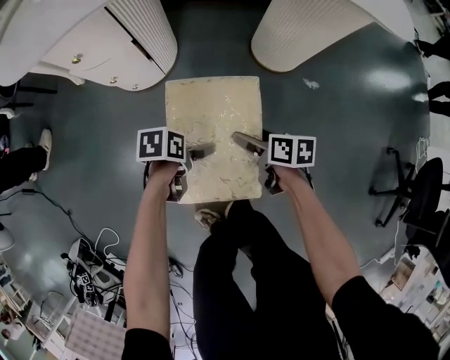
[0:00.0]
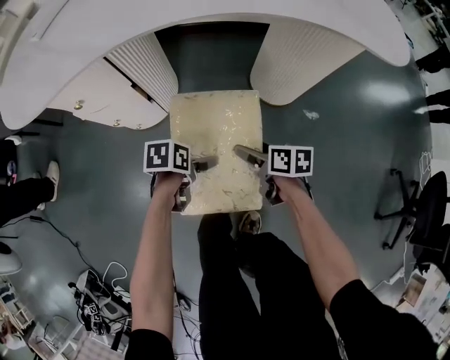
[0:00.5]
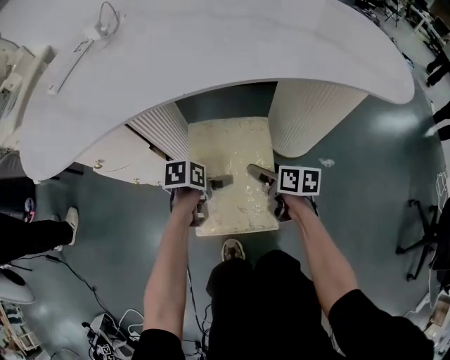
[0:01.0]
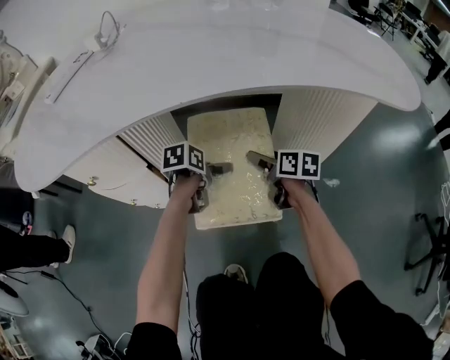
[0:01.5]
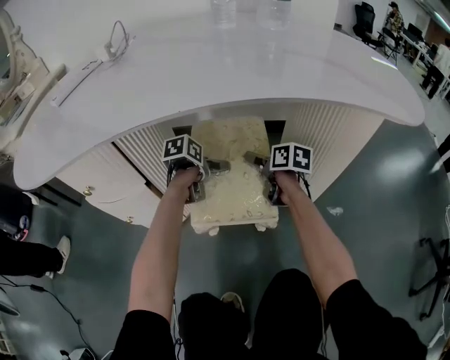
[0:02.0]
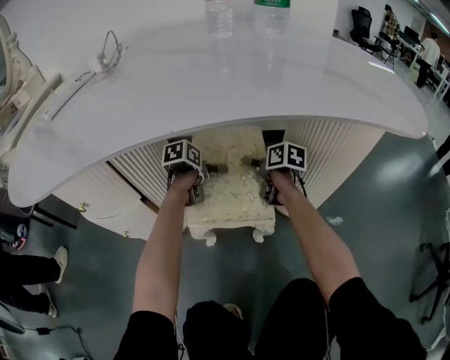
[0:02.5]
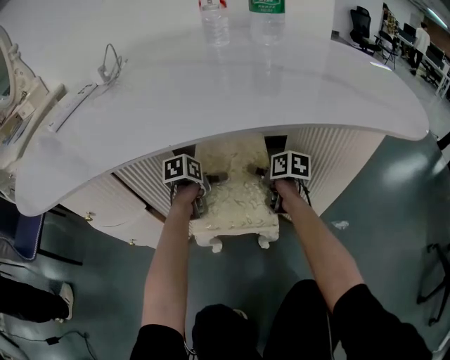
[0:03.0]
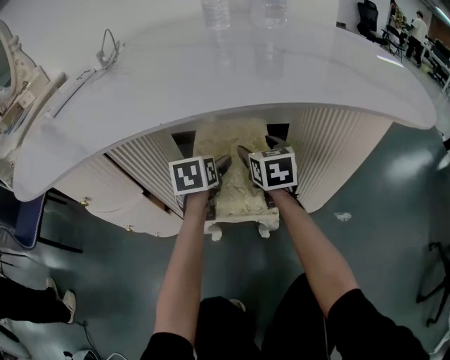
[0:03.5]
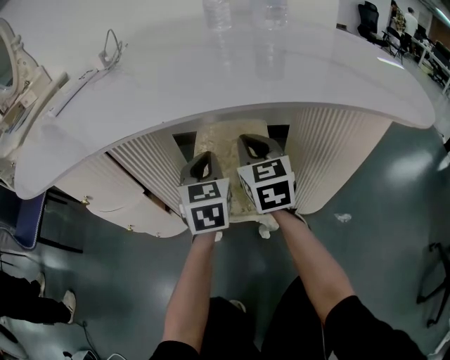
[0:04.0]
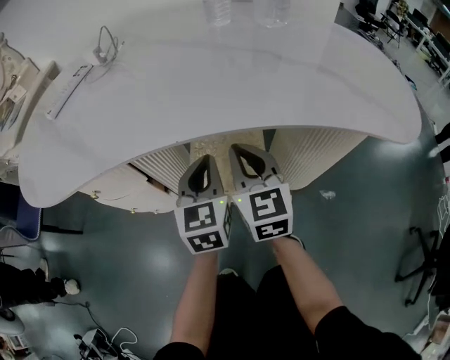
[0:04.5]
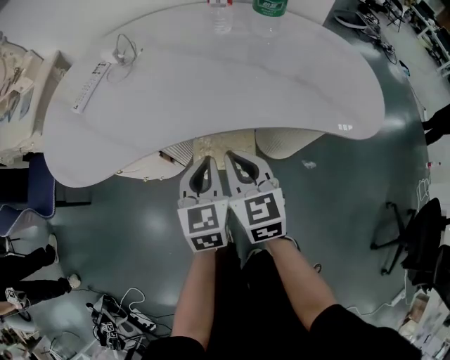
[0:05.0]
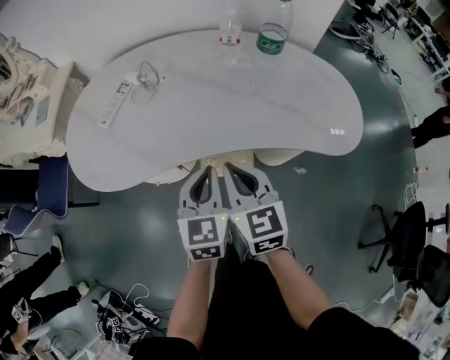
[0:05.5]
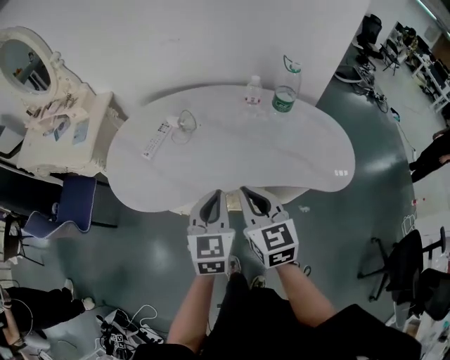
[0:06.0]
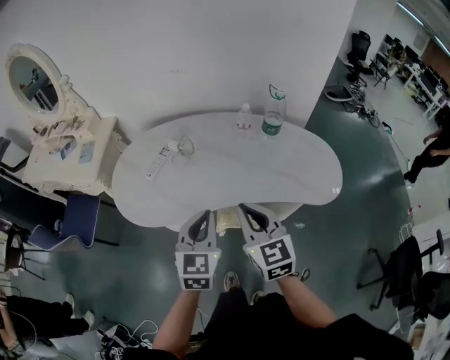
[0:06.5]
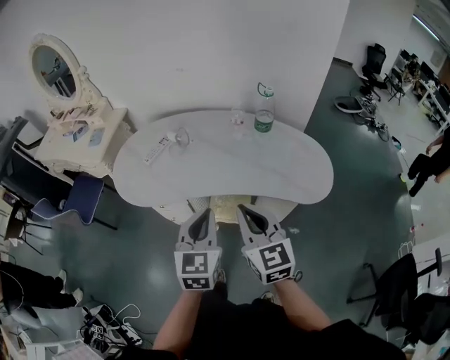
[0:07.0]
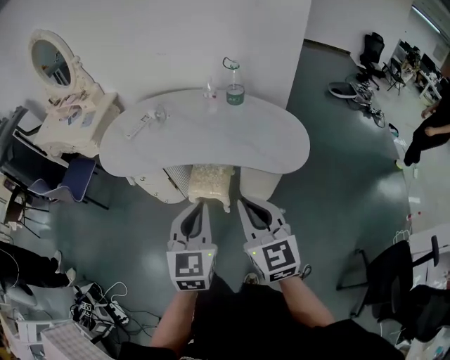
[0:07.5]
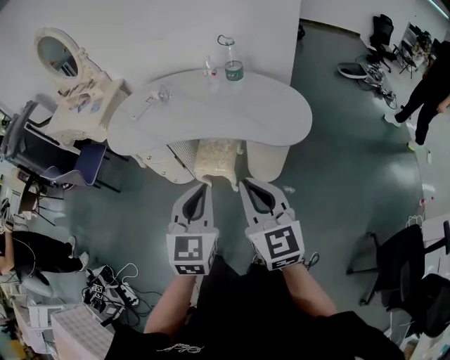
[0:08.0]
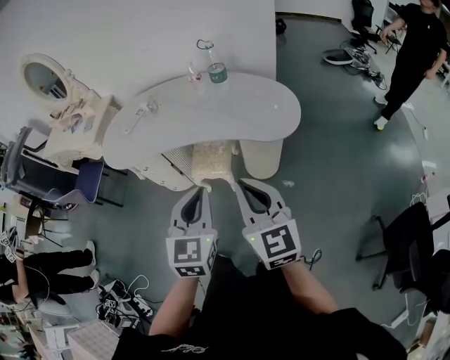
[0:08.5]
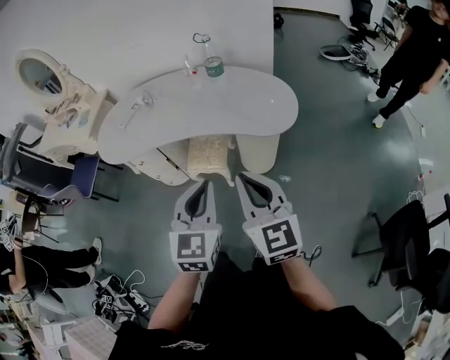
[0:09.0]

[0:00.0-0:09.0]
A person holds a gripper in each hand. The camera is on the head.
0:00.0 to 0:02.0: The two grippers travel together, some 40 cm. The right gripper rotates about 20 degrees.
0:02.0 to 0:04.5: The left gripper goes approximately 20 cm upward, points its fingers approximately 40 degrees further upward, and closes its fingers; the right gripper travels upward and backward by some 25 cm, rotates around the line of its fingers by approximately 40 degrees, counterclockwise from behind, and closes its fingers.
0:04.5 to 0:07.0: The grippers both shift upward and backward by some 50 cm.
0:07.0 to 0:09.0: Both grippers travel together backward and to the right, approximately 25 cm.

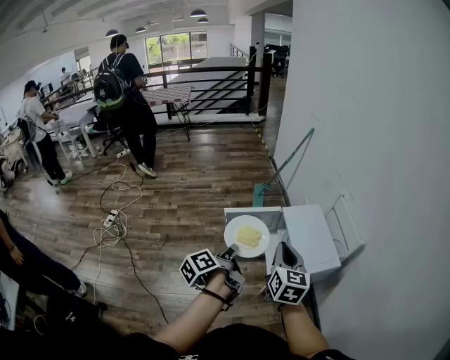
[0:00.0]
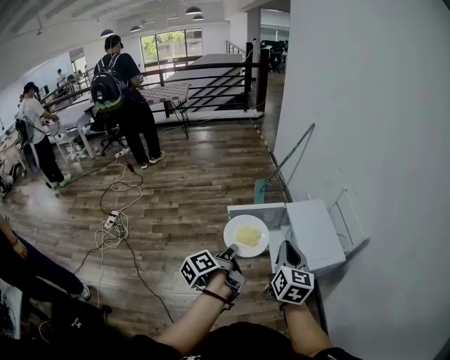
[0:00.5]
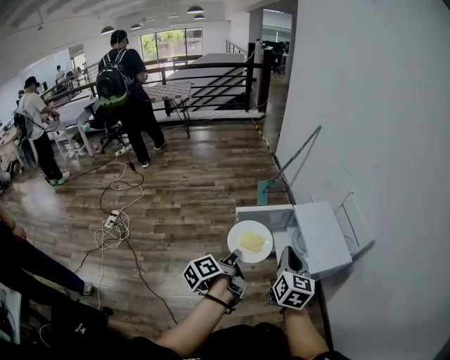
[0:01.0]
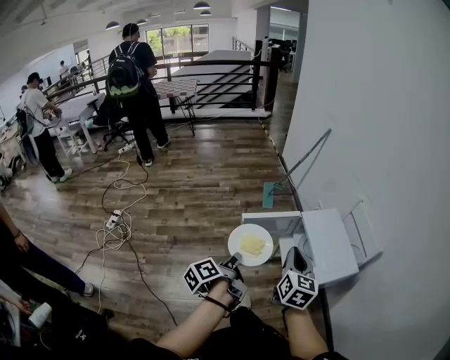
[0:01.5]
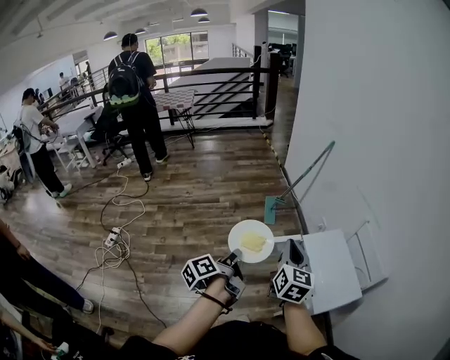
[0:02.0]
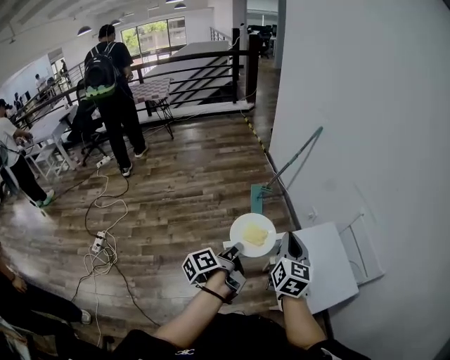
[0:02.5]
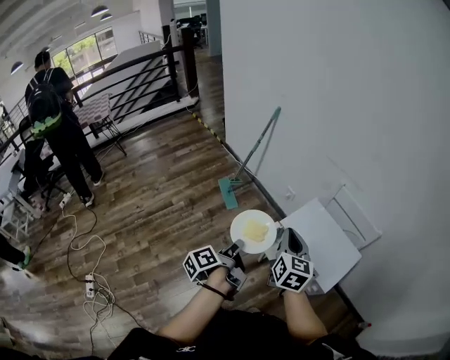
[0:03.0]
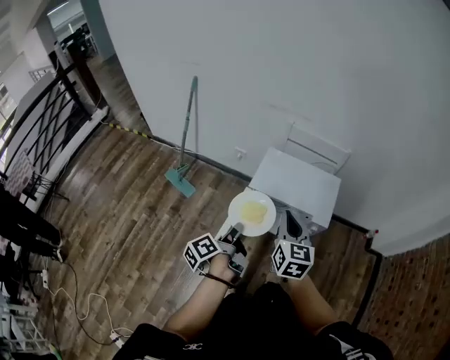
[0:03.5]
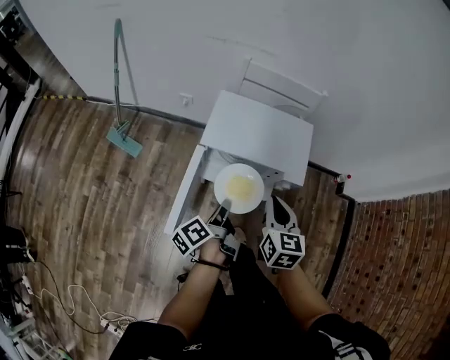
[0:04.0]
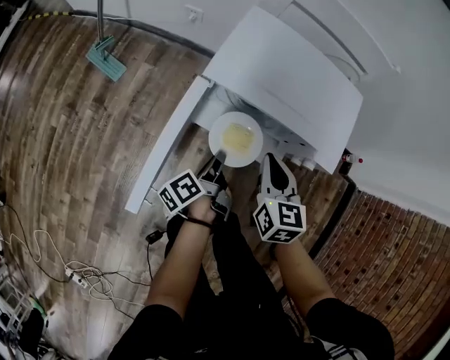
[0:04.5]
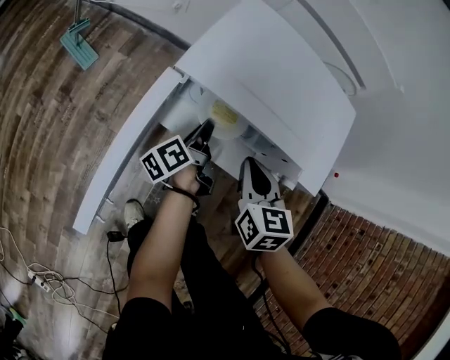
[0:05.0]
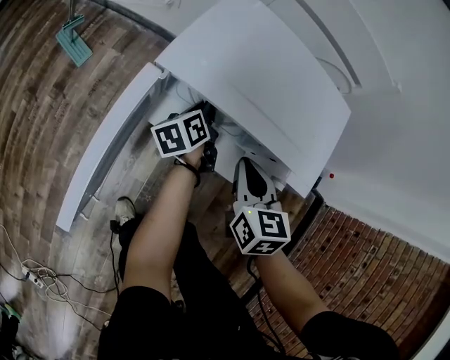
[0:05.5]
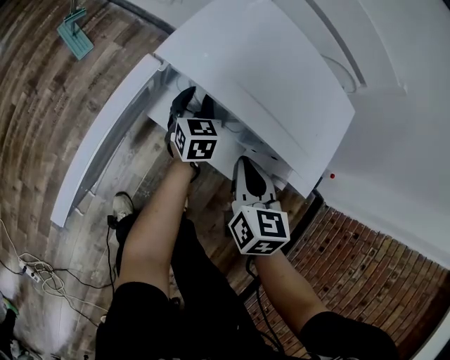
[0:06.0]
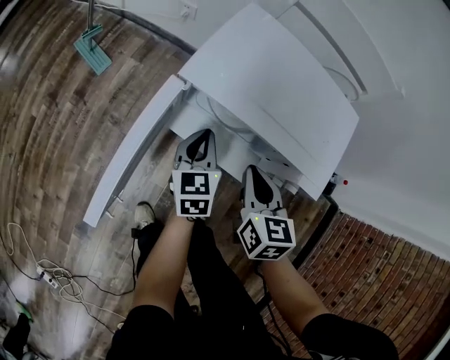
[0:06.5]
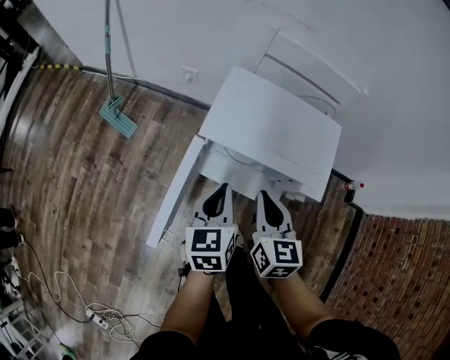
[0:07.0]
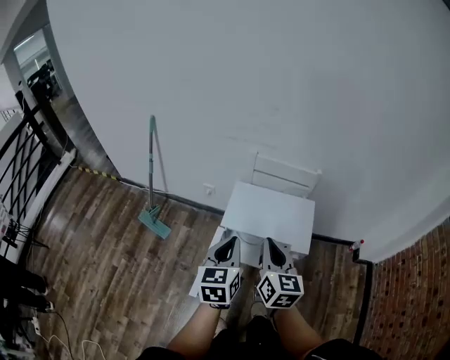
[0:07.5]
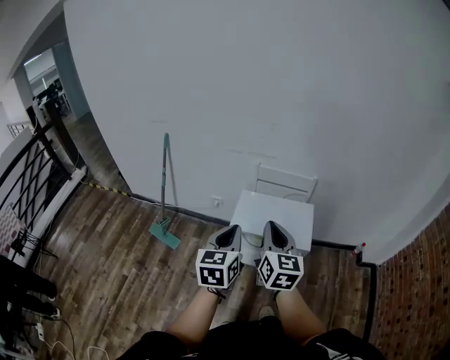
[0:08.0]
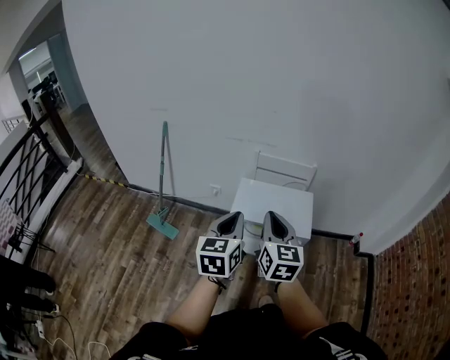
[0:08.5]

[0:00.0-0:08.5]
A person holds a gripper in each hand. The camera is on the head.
0:00.0 to 0:02.0: Both grippers travel together forward and to the left, roughly 20 cm.
0:02.0 to 0:04.0: Both grippers travel together downward, approximately 20 cm. The left gripper rotates some 60 degrees; the right gripper changes its angle by about 60 degrees.
0:04.0 to 0:06.5: The left gripper is displaced downward and forward by about 25 cm, rolls clockwise, seen from behind, by about 60 degrees, and opens and closes again. Meanwhile the right gripper shifts about 20 cm downward.
0:06.5 to 0:08.5: Both grippers travel together upward, about 50 cm. The right gripper changes its angle by about 30 degrees, while the left gripper turns by some 30 degrees.

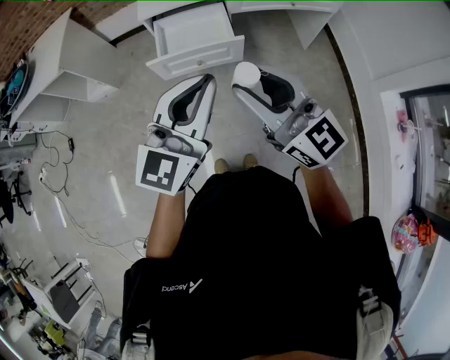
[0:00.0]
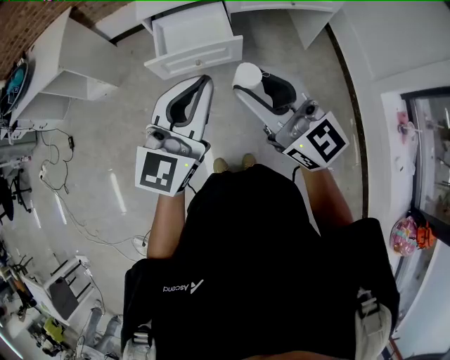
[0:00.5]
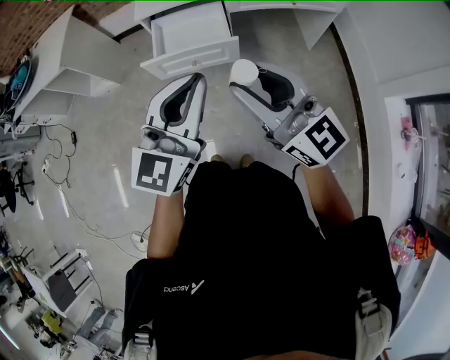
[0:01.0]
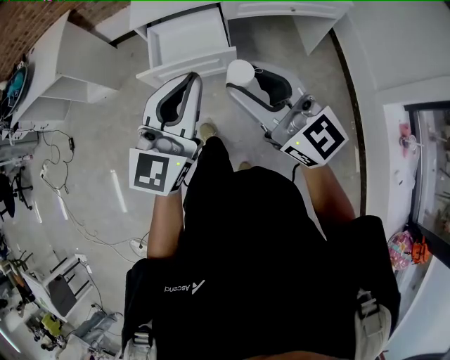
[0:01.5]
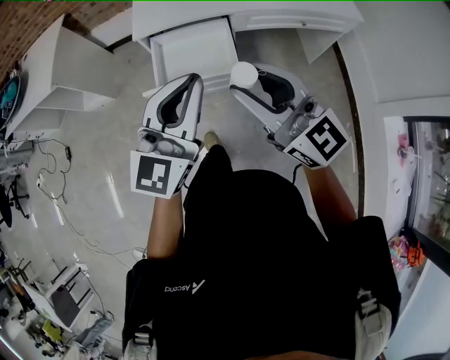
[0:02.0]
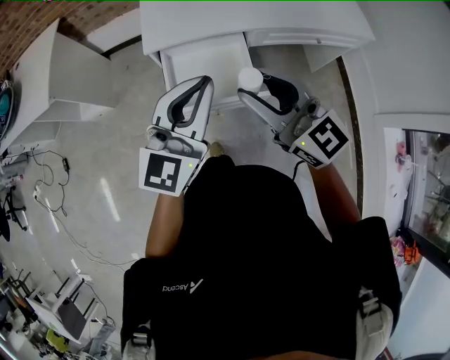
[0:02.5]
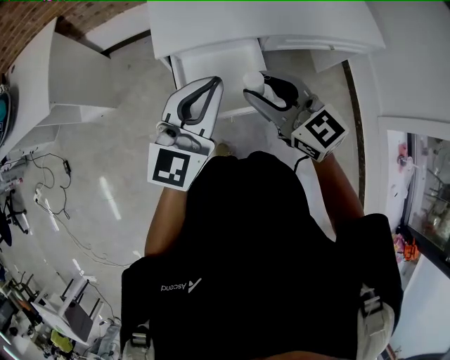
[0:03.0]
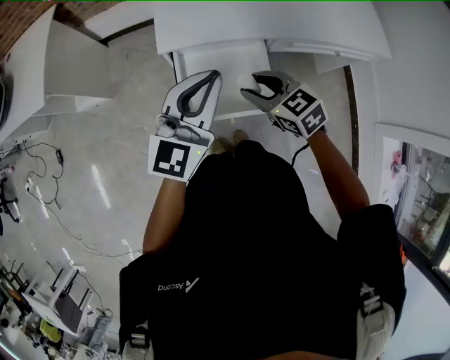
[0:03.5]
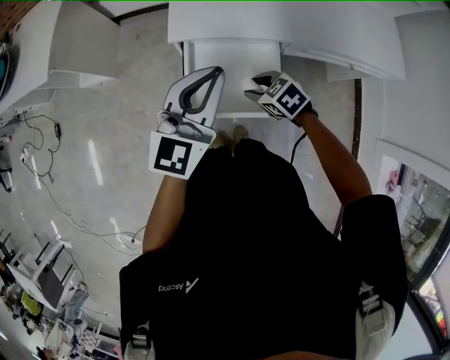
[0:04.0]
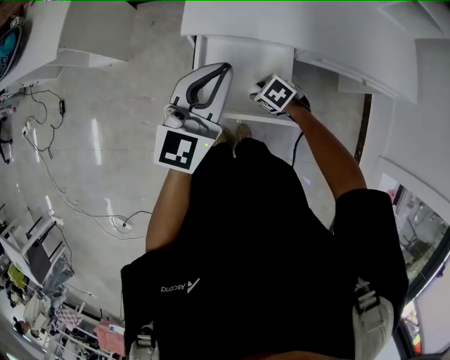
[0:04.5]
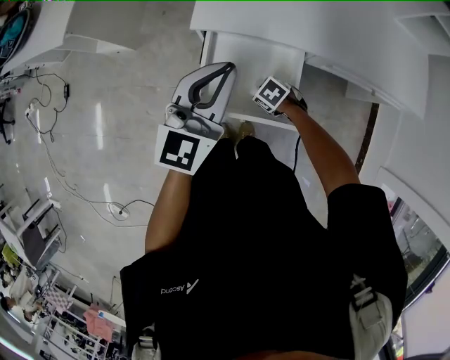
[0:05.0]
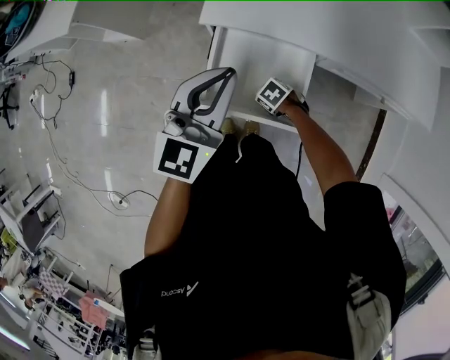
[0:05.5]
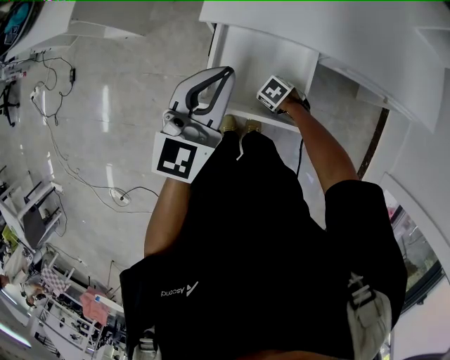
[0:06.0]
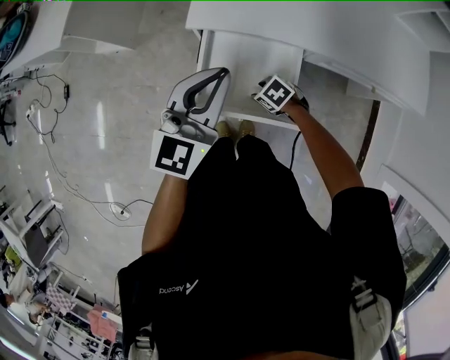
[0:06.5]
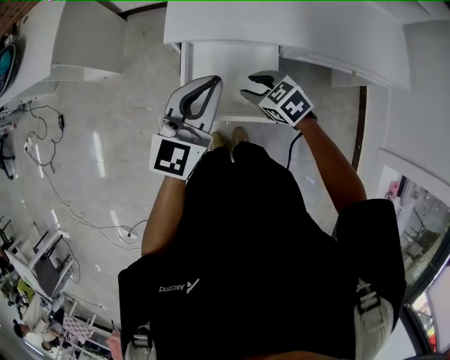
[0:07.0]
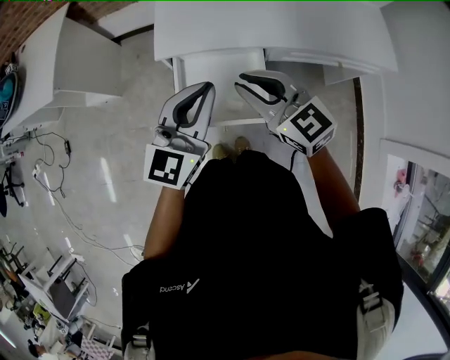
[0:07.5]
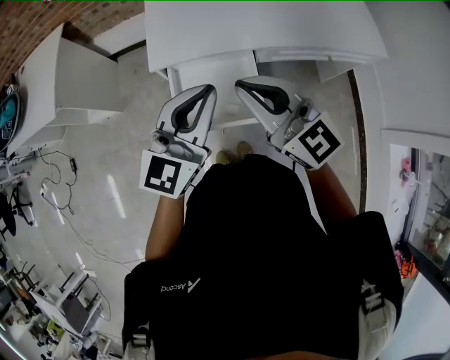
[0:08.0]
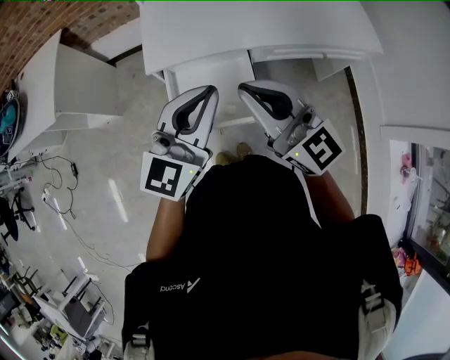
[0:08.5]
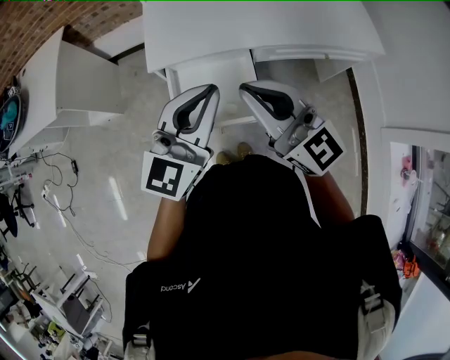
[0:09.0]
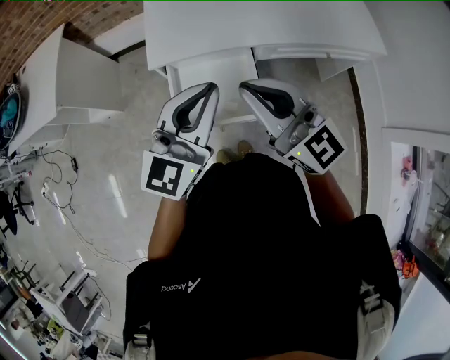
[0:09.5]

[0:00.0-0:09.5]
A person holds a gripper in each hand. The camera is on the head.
0:00.0 to 0:02.0: Both grippers move forward, about 20 cm.
0:02.0 to 0:04.0: The left gripper is displaced forward by approximately 30 cm; the right gripper travels downward and forward by approximately 40 cm, and tilts its fingers approximately 70 degrees downward.
0:04.0 to 0:05.5: The right gripper moves downward, some 20 cm, and changes its angle by some 30 degrees.
0:05.5 to 0:07.5: The left gripper ends up some 10 cm from where it was, while the right gripper moves upward, approximately 40 cm, points its fingers about 60 degrees further upward, and closes its fingers.
0:07.5 to 0:09.5: The left gripper moves upward, approximately 5 cm. Meanwhile the right gripper travels upward and backward by approximately 10 cm, and changes its angle by roughly 20 degrees.
